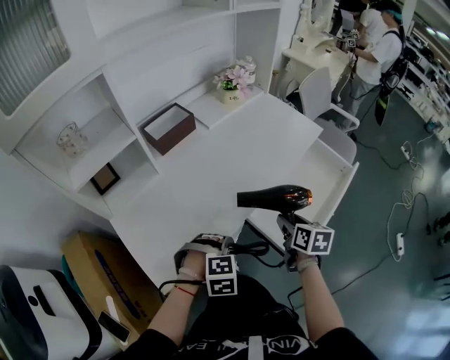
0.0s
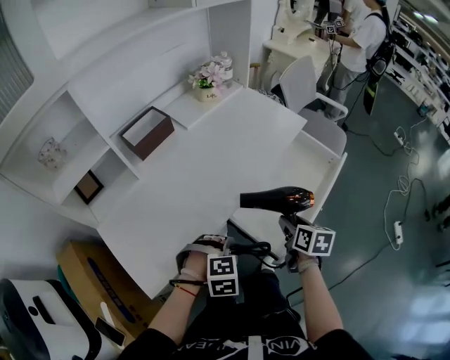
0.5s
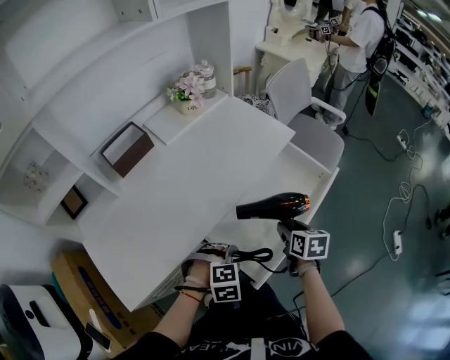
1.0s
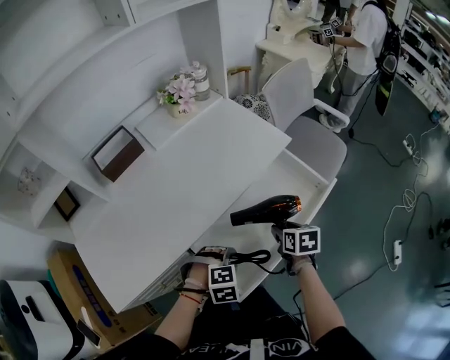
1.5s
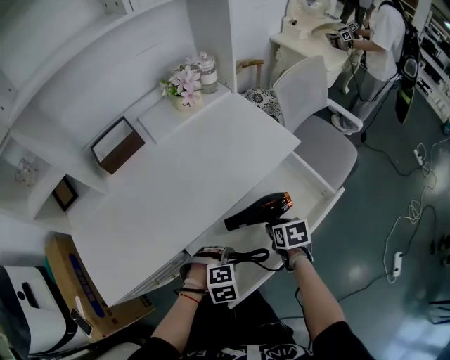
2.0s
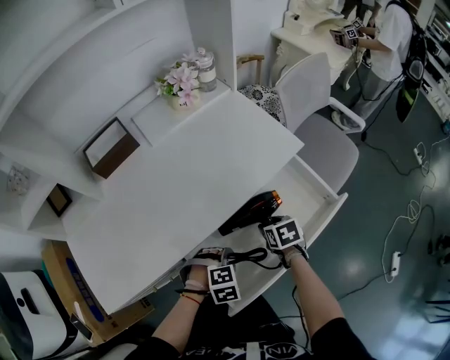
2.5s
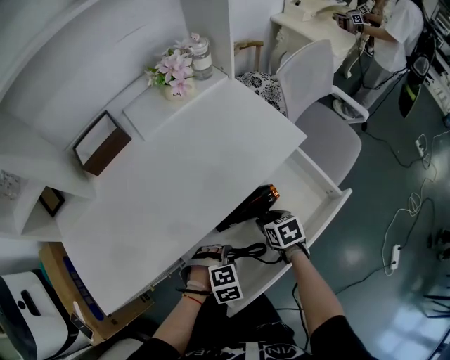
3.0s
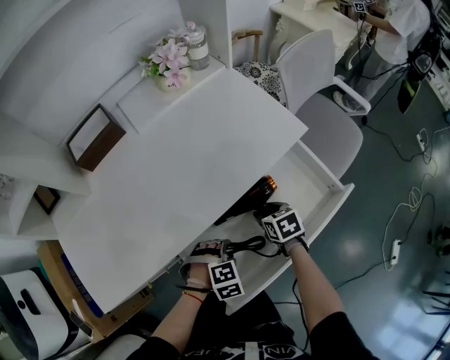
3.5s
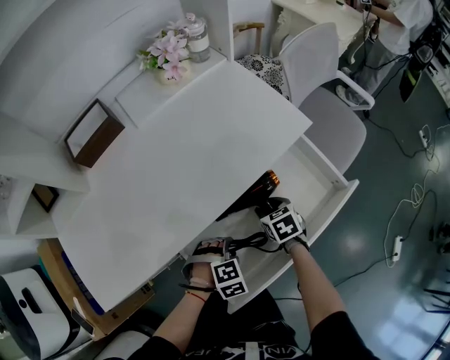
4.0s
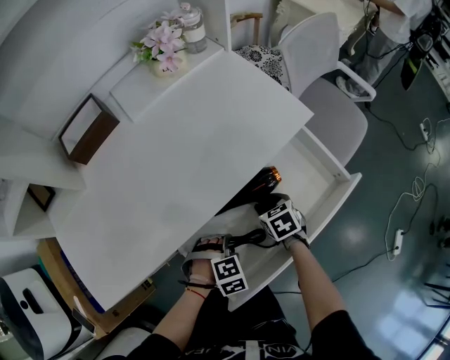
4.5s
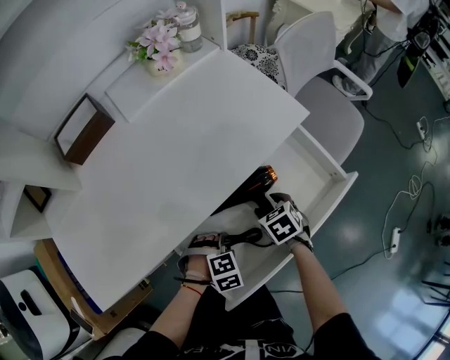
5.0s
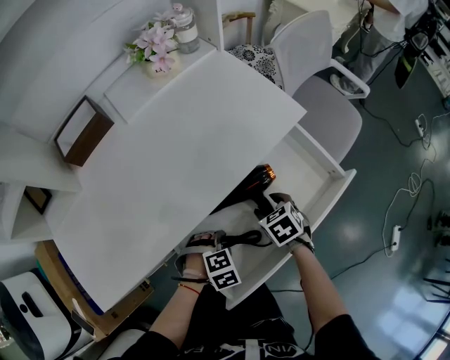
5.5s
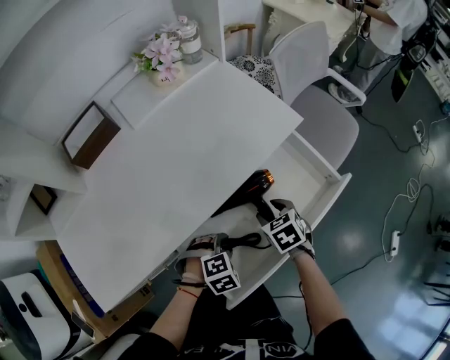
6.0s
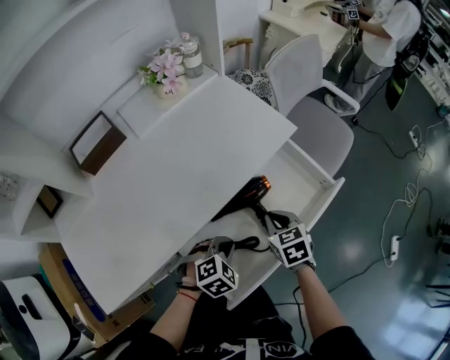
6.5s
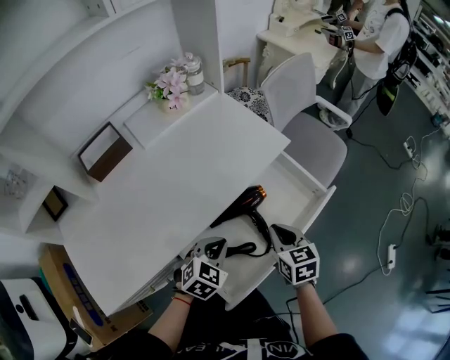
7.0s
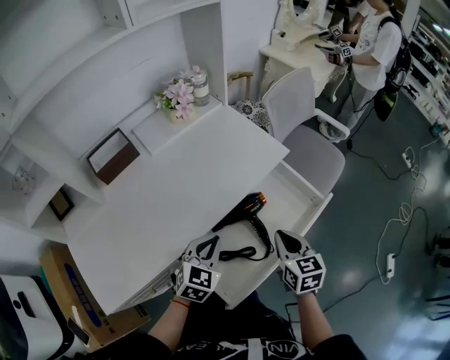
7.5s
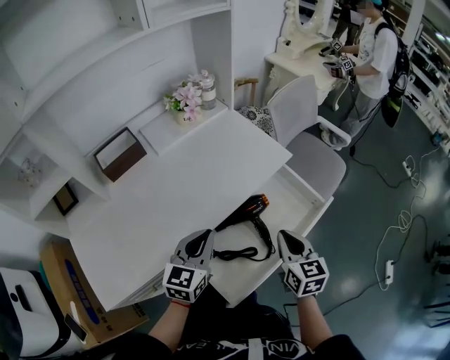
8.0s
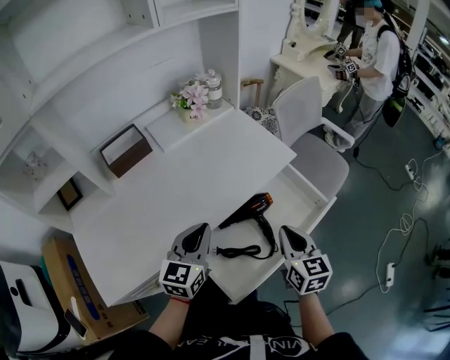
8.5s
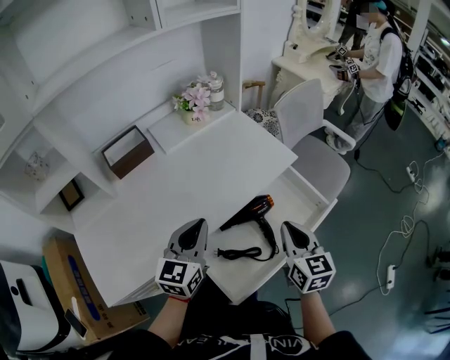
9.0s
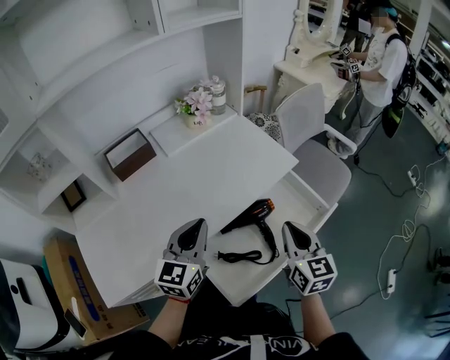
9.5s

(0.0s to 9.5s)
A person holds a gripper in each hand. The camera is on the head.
0.0s - 2.0s: The left gripper is displaced to the right and forward by roughly 25 cm. Meanwhile the right gripper travels forward, to the right and downward by about 25 cm, and changes its angle by about 30 degrees.
2.0s - 4.0s: Both grippers move downward, roughly 5 cm.
4.0s - 5.5s: The grippers move only a little.
5.5s - 7.5s: Both grippers move upward, approximately 20 cm. The left gripper tilts its fingers about 40 degrees upward, and closes its fingers. Meanwhile the right gripper angles its fingers upward, by some 30 degrees, and closes up.
7.5s - 9.5s: The right gripper shifts approximately 10 cm upward; the left gripper heads upward and to the left, covering about 15 cm, and turns by some 30 degrees.

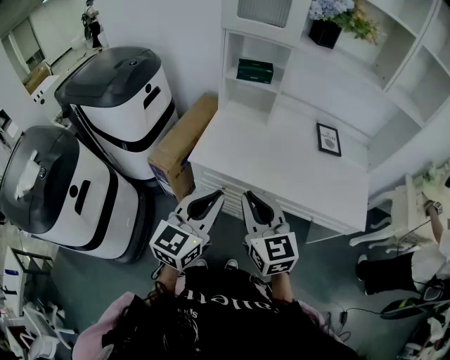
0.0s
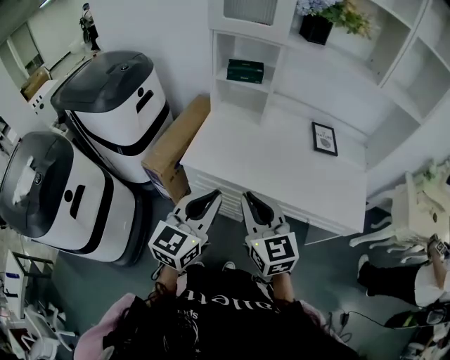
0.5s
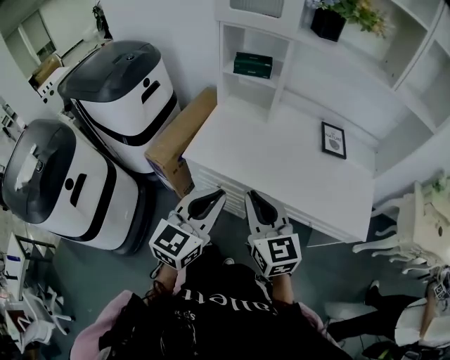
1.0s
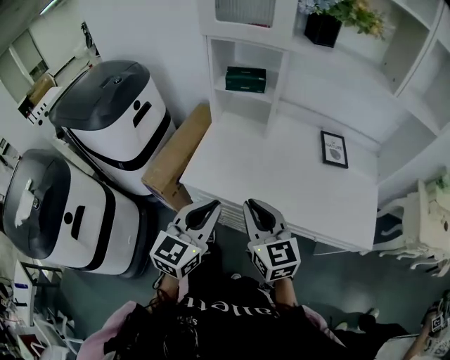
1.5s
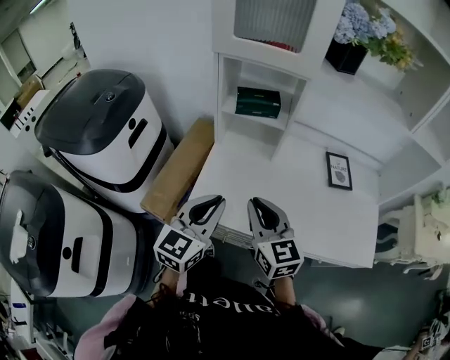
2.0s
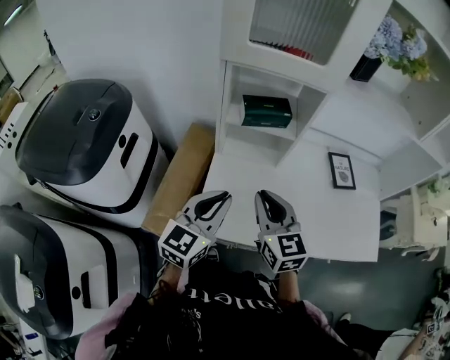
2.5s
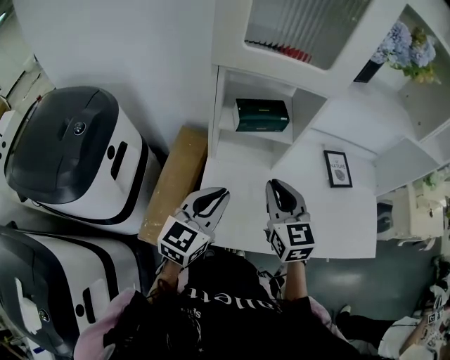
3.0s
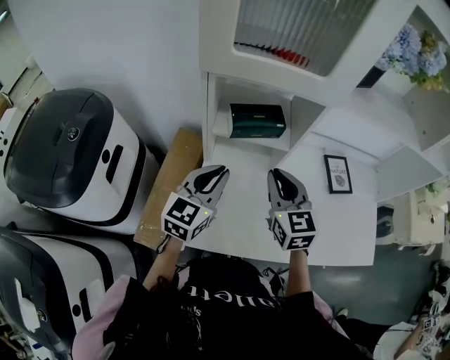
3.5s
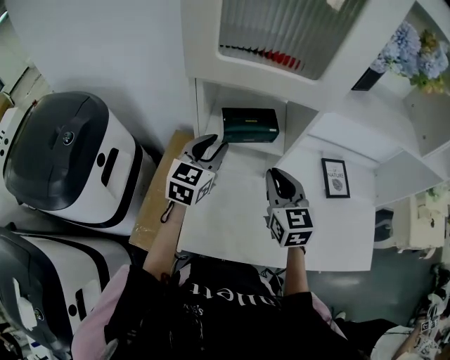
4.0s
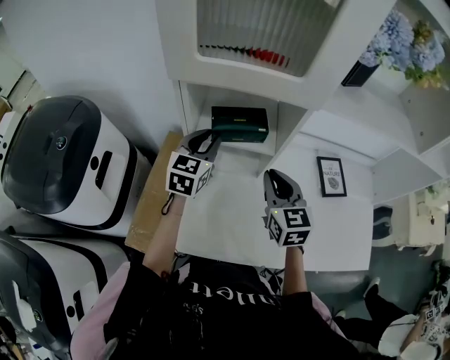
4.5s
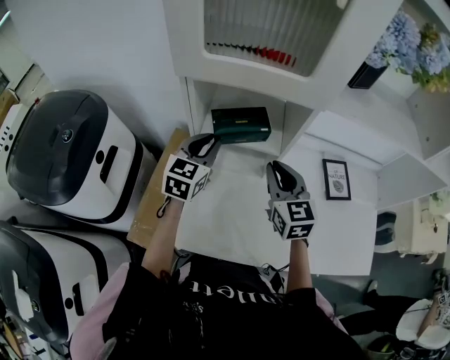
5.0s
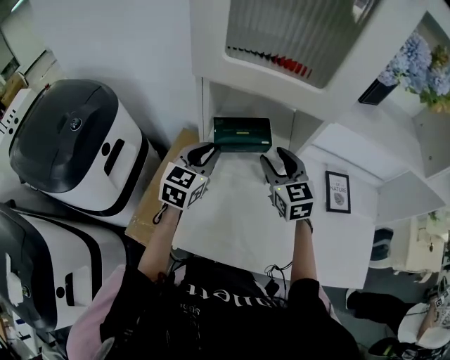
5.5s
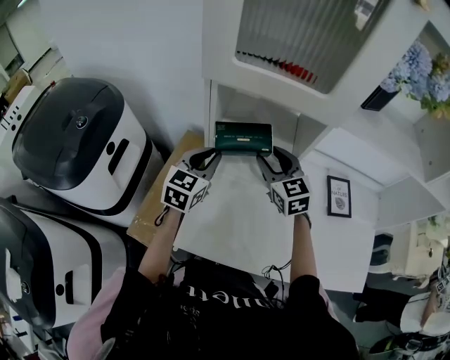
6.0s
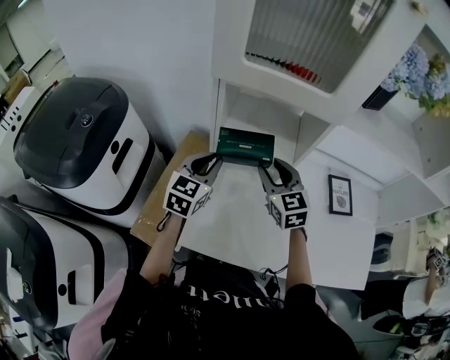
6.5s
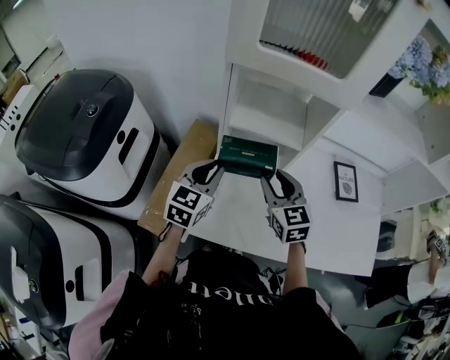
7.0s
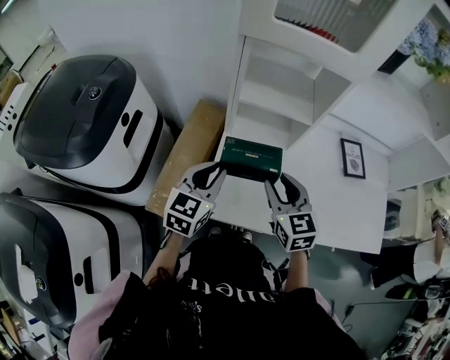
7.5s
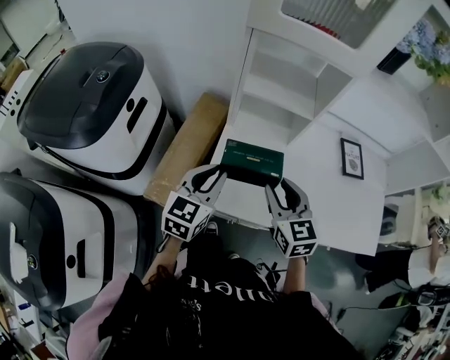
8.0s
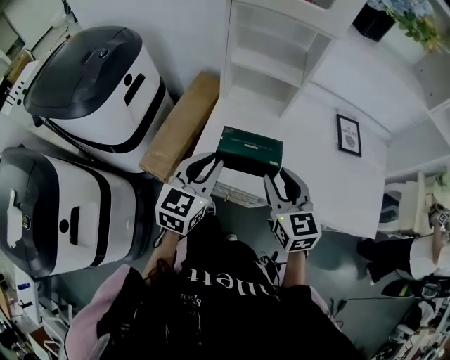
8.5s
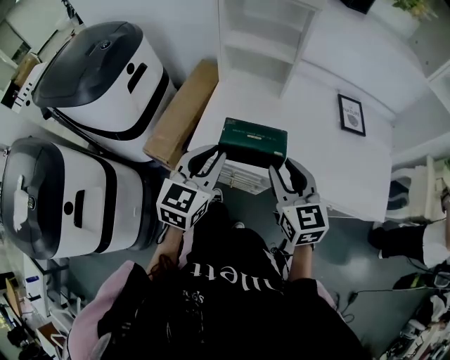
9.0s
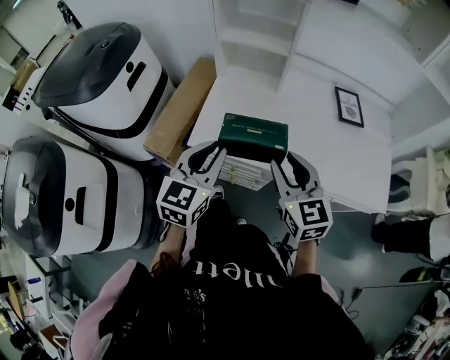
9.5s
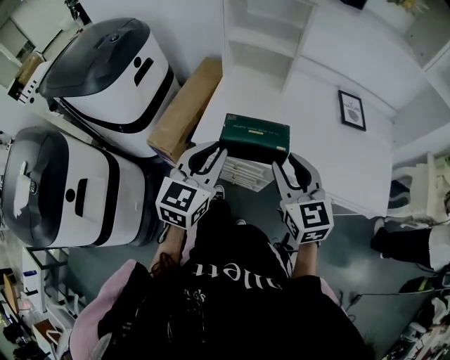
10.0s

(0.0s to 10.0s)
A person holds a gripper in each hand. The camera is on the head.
0.0s - 2.0s: The grippers both shift forward by about 25 cm.
2.0s - 4.0s: The two grippers go about 30 cm forward. The left gripper opens up.
4.0s - 6.0s: The right gripper shifts about 10 cm forward, and opens up.
6.0s - 8.0s: Both grippers move backward, some 25 cm.
8.0s - 10.0s: The grippers both shift backward and to the right by approximately 20 cm.

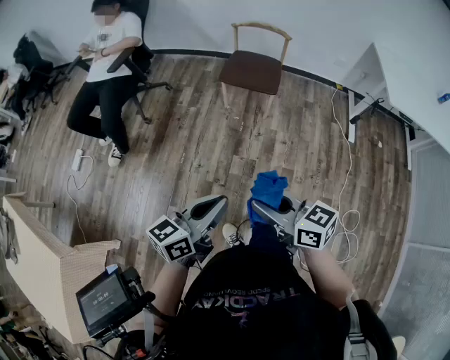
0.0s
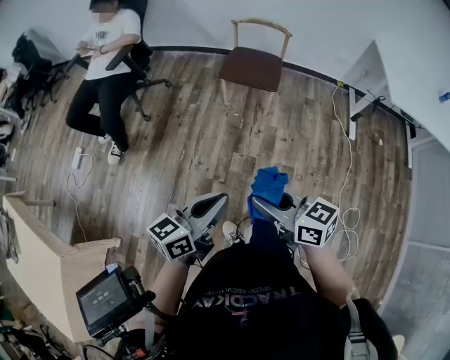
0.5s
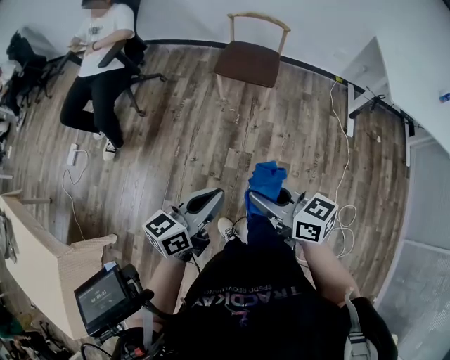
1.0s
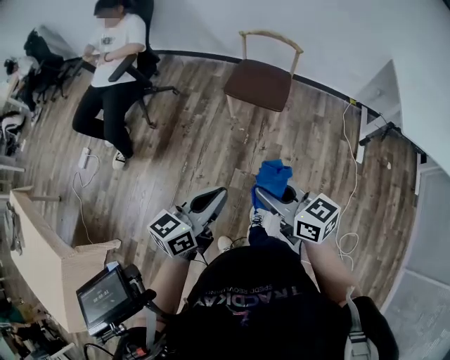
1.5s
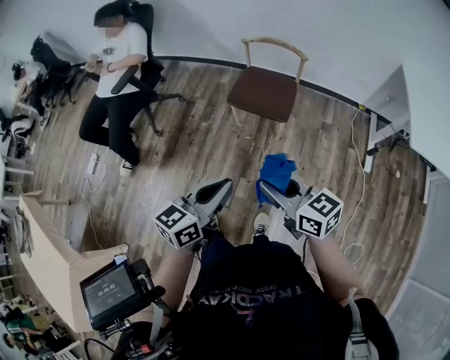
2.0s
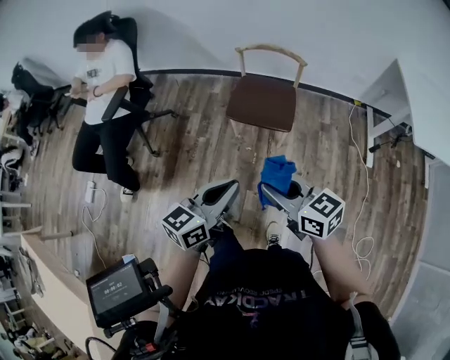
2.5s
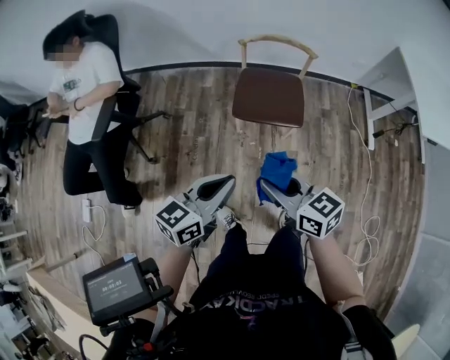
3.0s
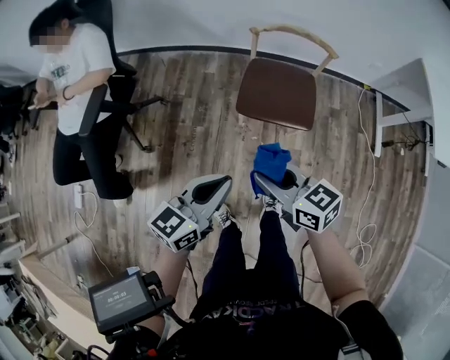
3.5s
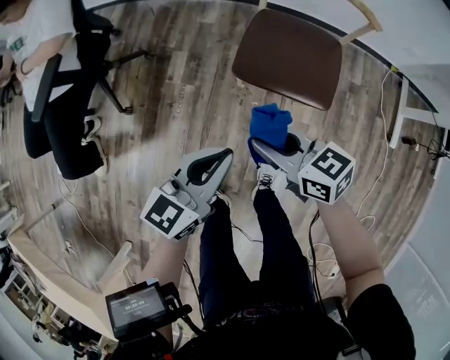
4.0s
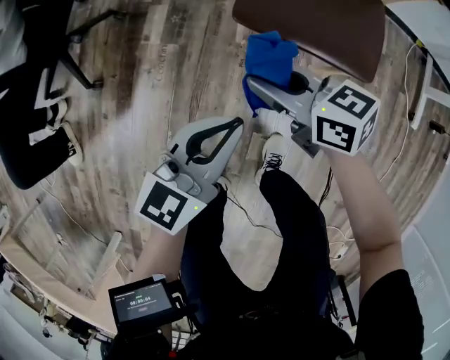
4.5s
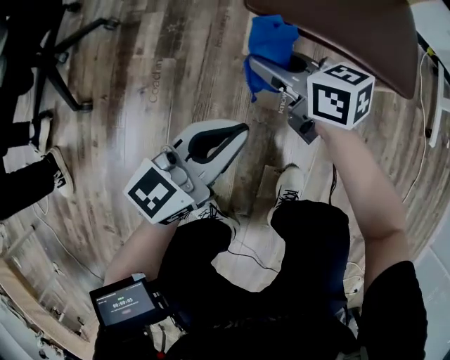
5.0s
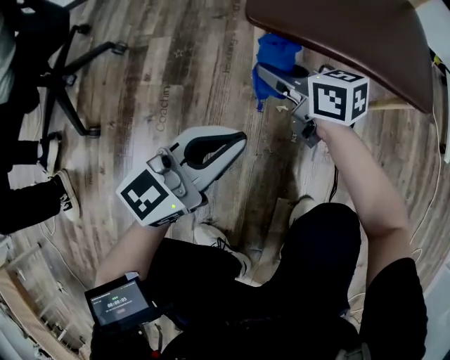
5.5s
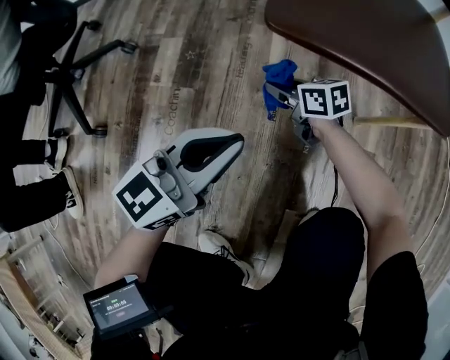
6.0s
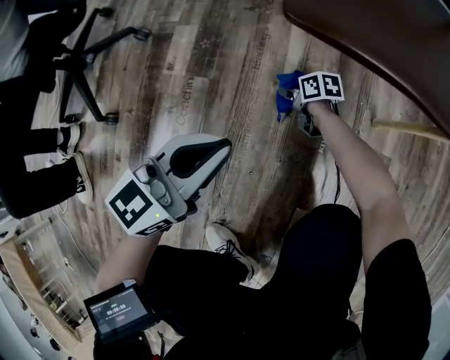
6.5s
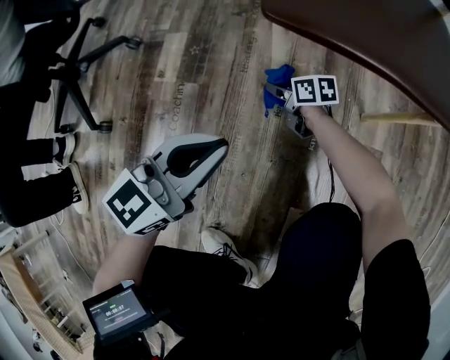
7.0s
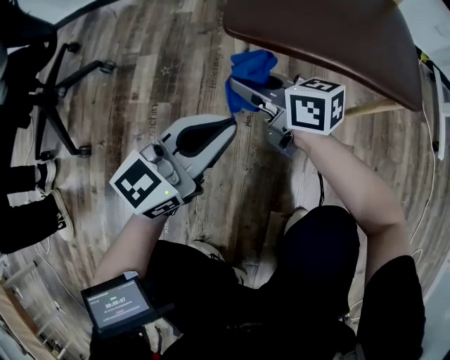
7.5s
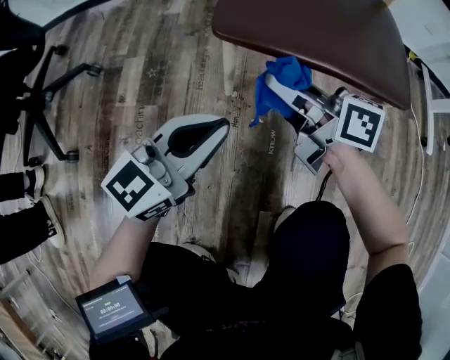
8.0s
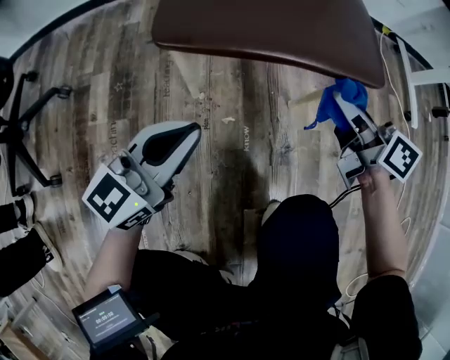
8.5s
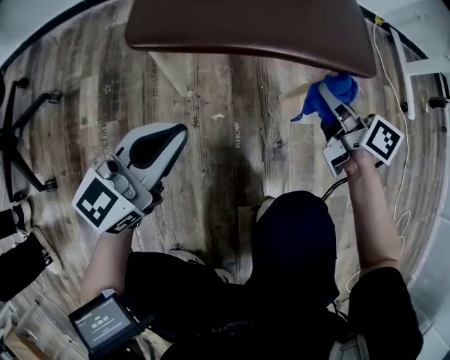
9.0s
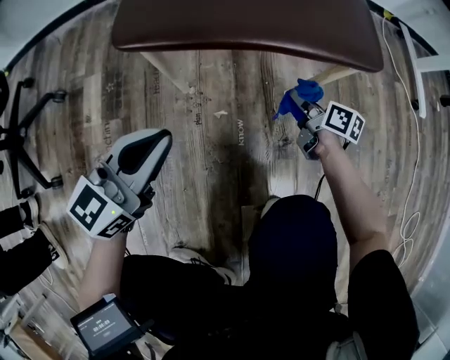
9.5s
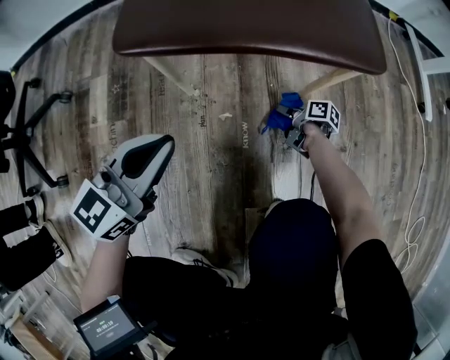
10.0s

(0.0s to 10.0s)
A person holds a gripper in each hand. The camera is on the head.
0.0s - 2.0s: Both grippers move forward and to the right, some 25 cm.
2.0s - 4.0s: The left gripper travels forward and downward by roughly 40 cm. Meanwhile the right gripper shifts some 50 cm forward, downward and to the left.
4.0s - 6.0s: The grippers both shift downward by some 50 cm.
6.0s - 8.0s: The right gripper shifts roughly 20 cm upward, and turns by approximately 30 degrees.
8.0s - 10.0s: The right gripper travels downward and to the right by about 40 cm, and angles its fingers downward, by about 30 degrees.
